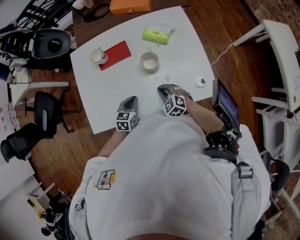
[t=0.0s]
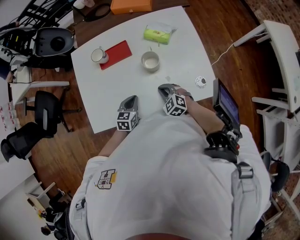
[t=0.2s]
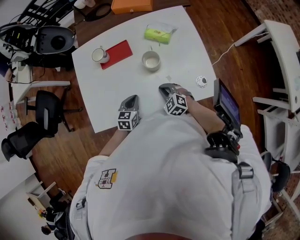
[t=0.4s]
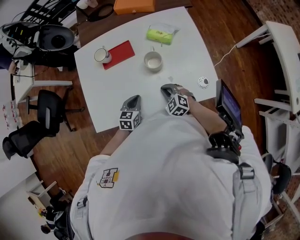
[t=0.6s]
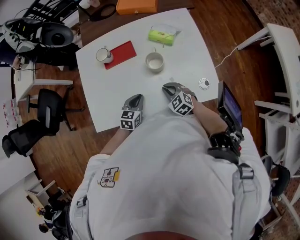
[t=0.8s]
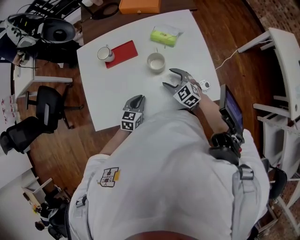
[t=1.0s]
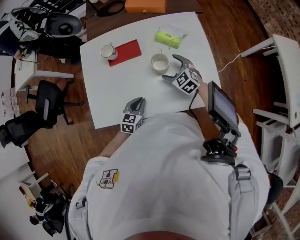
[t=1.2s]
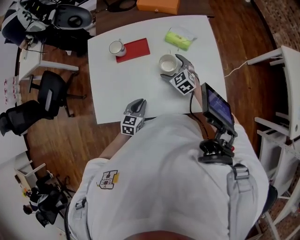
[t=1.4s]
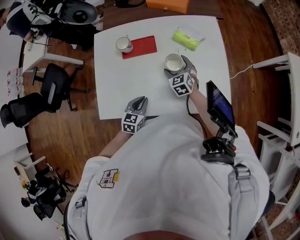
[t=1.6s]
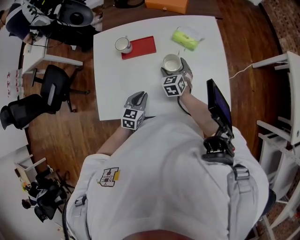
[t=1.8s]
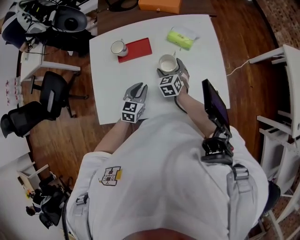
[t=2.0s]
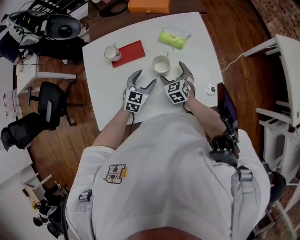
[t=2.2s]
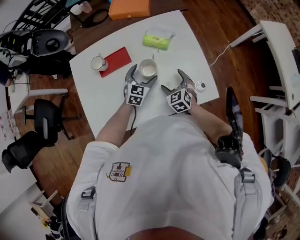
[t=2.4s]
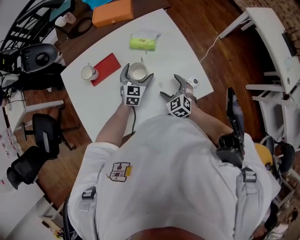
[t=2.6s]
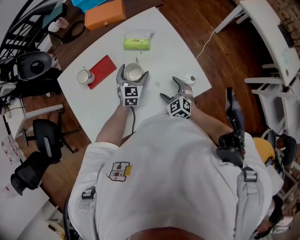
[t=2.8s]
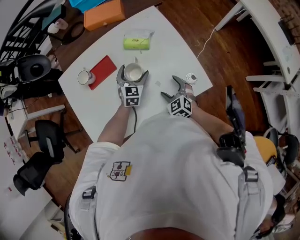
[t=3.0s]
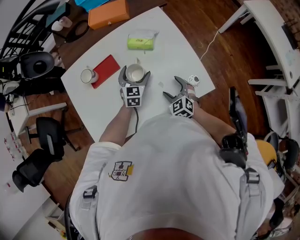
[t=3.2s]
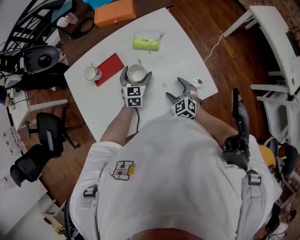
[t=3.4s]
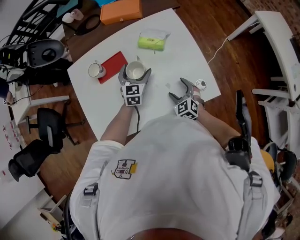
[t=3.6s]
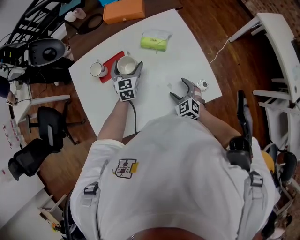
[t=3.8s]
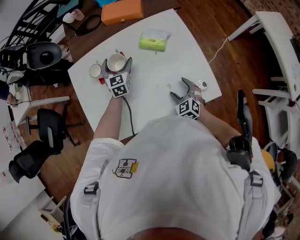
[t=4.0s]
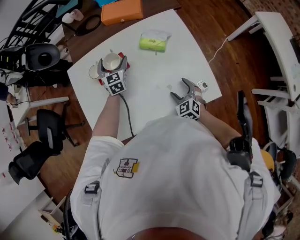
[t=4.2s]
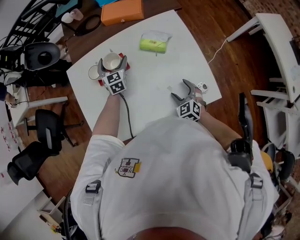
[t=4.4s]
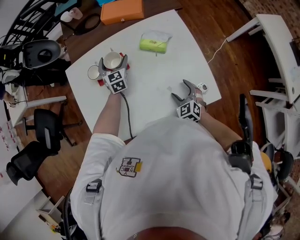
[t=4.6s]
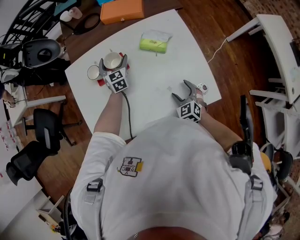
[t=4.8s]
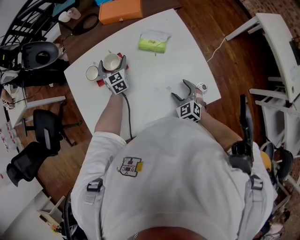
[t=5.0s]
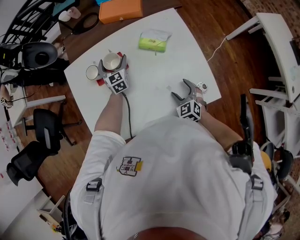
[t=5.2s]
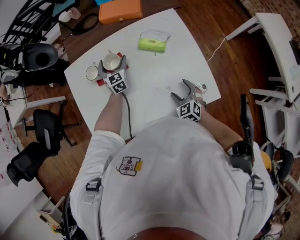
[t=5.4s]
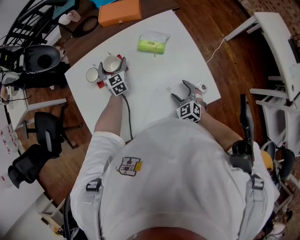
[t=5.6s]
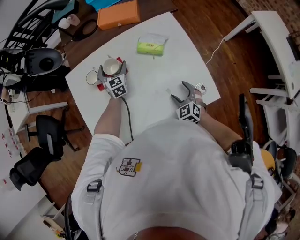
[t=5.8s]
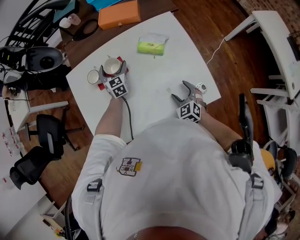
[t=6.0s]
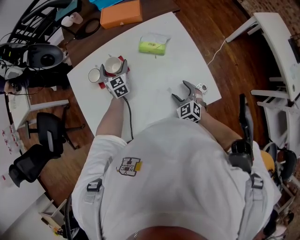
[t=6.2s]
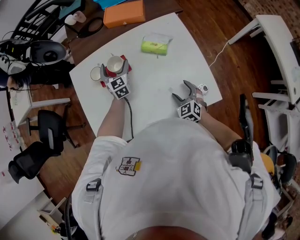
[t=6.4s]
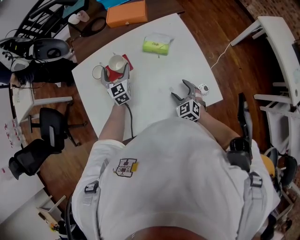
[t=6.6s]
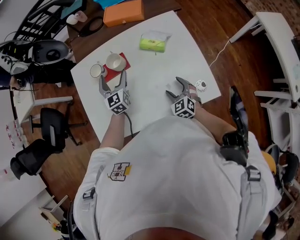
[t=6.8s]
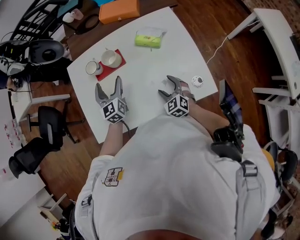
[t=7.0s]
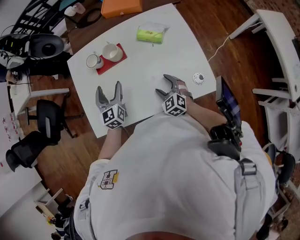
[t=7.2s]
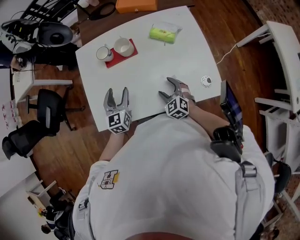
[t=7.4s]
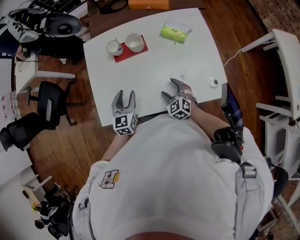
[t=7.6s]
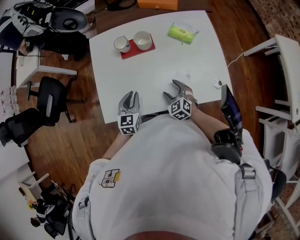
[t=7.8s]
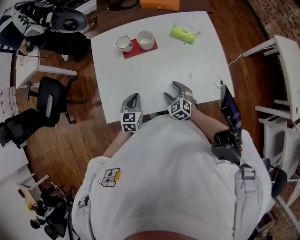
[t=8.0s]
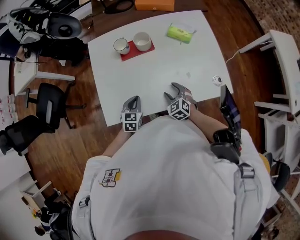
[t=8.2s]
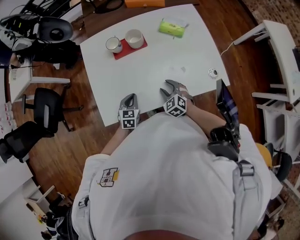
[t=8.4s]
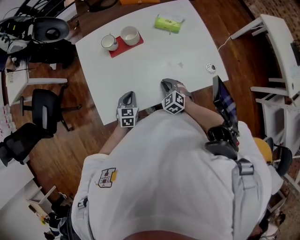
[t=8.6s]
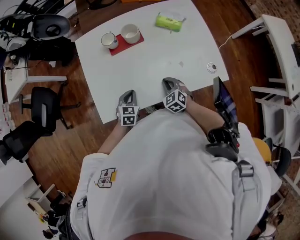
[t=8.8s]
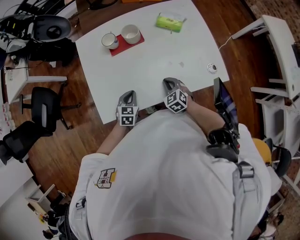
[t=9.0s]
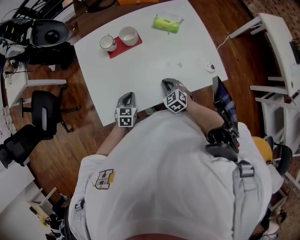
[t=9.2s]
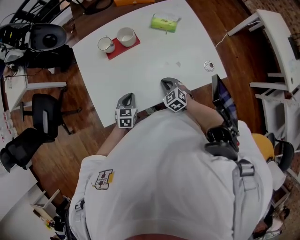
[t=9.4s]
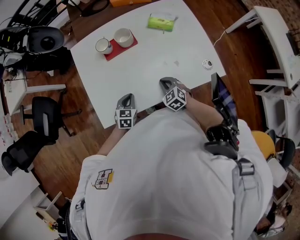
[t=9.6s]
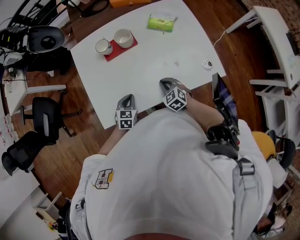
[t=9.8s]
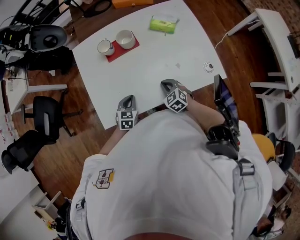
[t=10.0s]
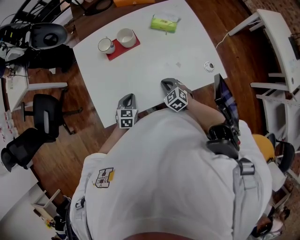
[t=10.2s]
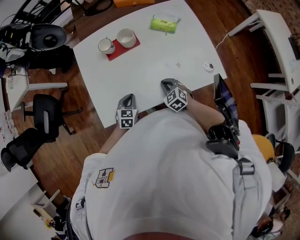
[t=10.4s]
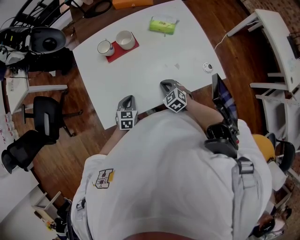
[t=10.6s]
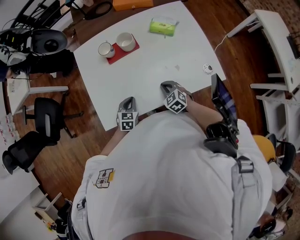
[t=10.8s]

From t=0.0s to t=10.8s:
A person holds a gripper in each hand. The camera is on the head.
From t=0.0s to t=1.6s: The right gripper is displaced forward by some 15 cm, and opens up.
From t=1.6s to t=3.0s: The left gripper travels forward and to the right by approximately 25 cm, changes its angle by roughly 30 degrees, and opens, while the right gripper heads to the right and backward, covering roughly 15 cm.
From t=3.0s to t=4.6s: The left gripper shifts some 20 cm to the left and forward, and rotates roughly 30 degrees.
From t=4.6s to t=6.2s: There are only small adjustments of the grippers.
From t=6.2s to t=7.8s: The right gripper heads to the left, covering some 15 cm. Meanwhile the left gripper travels backward by some 30 cm, and closes its fingers.
From t=7.8s to t=9.2s: The right gripper closes. Meanwhile the left gripper shifts some 10 cm downward, and rotates roughly 20 degrees.
From t=9.2s to t=10.8s: Both grippers stay about where they are.

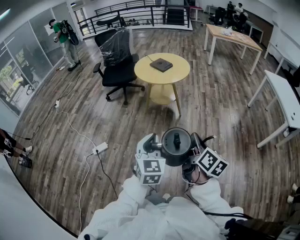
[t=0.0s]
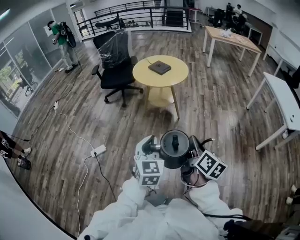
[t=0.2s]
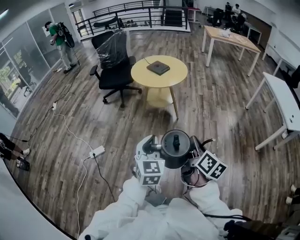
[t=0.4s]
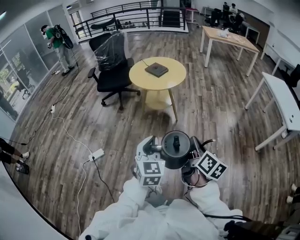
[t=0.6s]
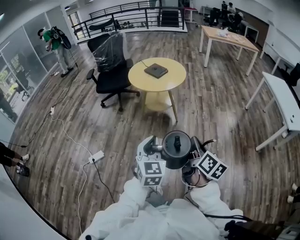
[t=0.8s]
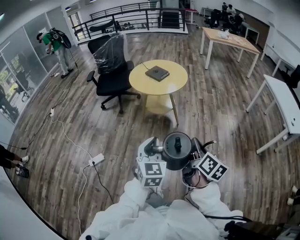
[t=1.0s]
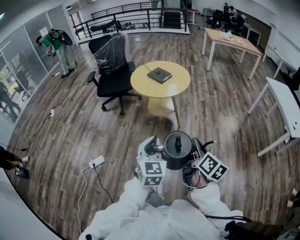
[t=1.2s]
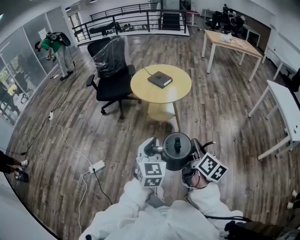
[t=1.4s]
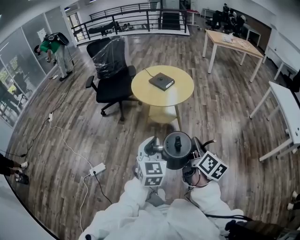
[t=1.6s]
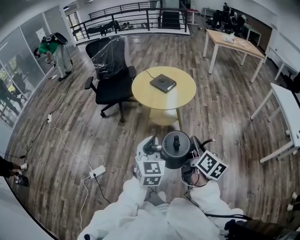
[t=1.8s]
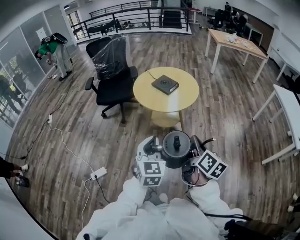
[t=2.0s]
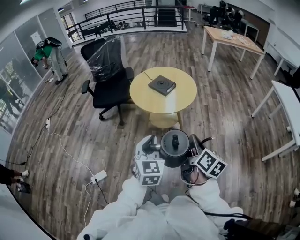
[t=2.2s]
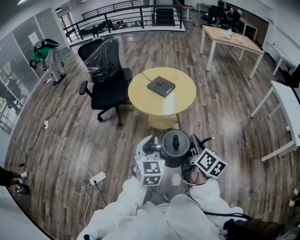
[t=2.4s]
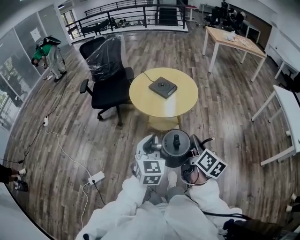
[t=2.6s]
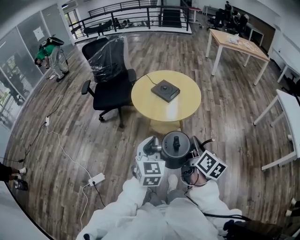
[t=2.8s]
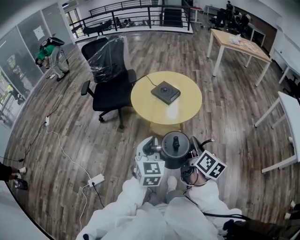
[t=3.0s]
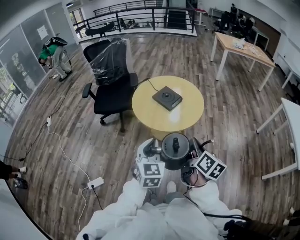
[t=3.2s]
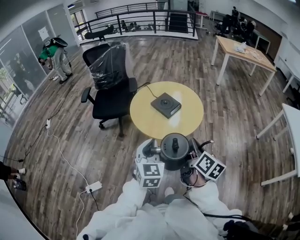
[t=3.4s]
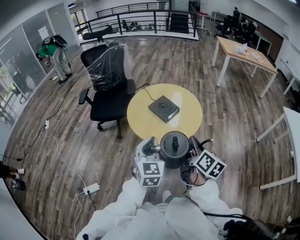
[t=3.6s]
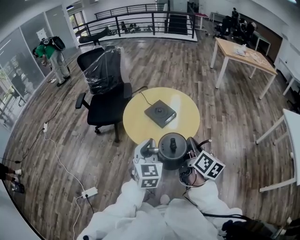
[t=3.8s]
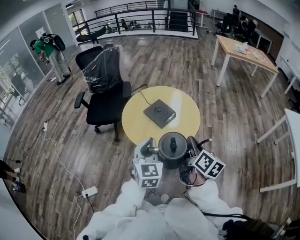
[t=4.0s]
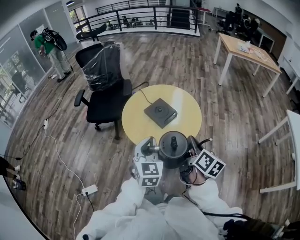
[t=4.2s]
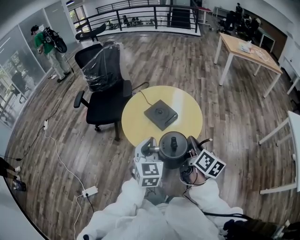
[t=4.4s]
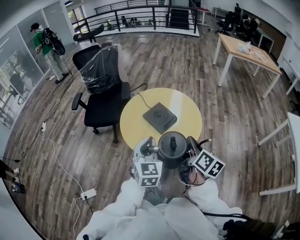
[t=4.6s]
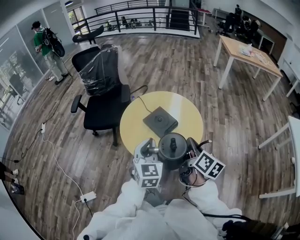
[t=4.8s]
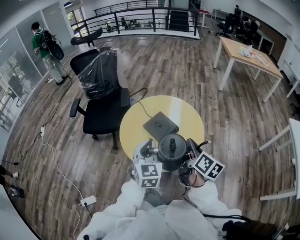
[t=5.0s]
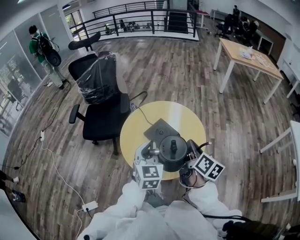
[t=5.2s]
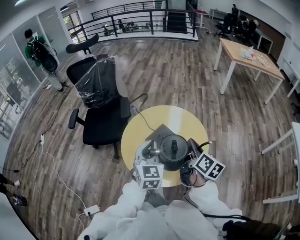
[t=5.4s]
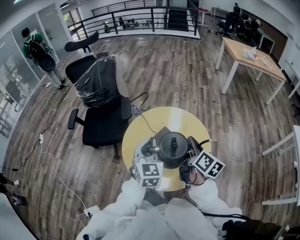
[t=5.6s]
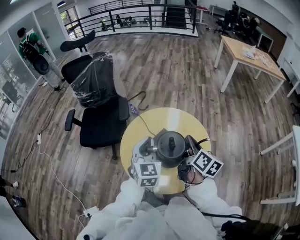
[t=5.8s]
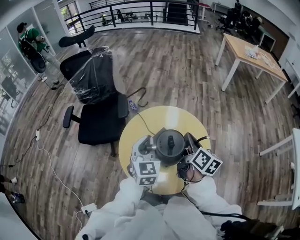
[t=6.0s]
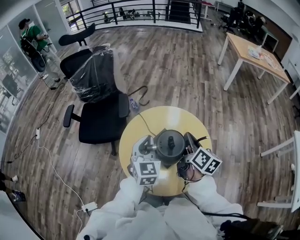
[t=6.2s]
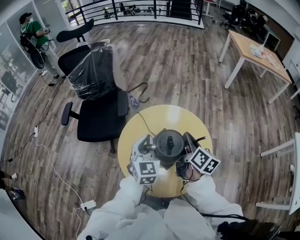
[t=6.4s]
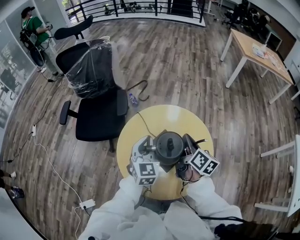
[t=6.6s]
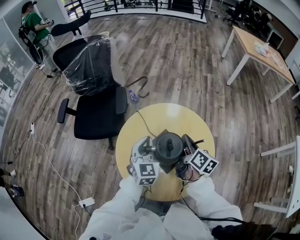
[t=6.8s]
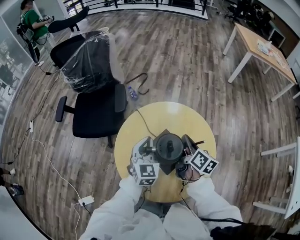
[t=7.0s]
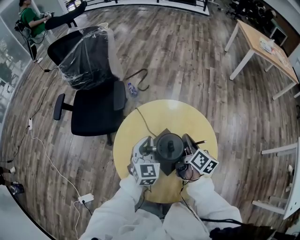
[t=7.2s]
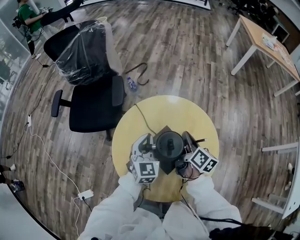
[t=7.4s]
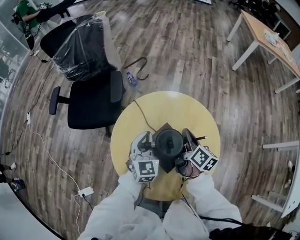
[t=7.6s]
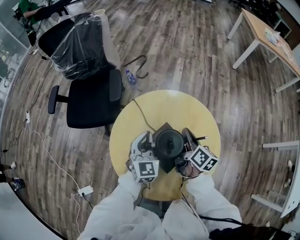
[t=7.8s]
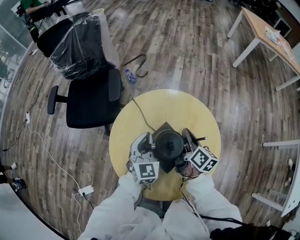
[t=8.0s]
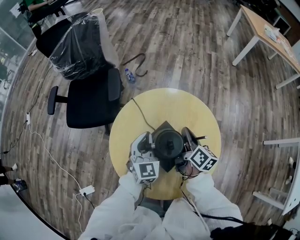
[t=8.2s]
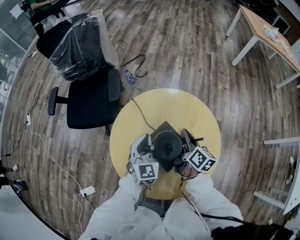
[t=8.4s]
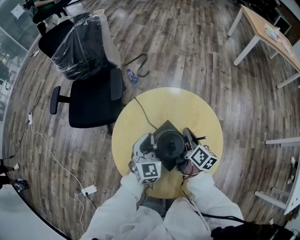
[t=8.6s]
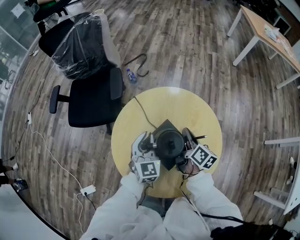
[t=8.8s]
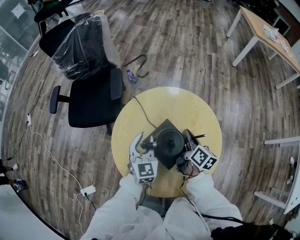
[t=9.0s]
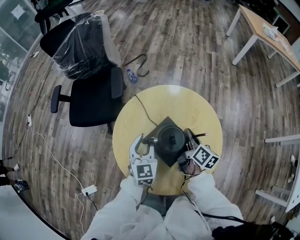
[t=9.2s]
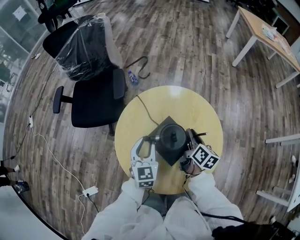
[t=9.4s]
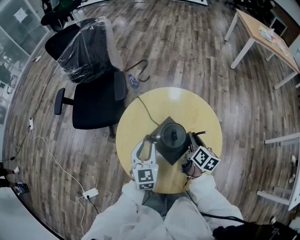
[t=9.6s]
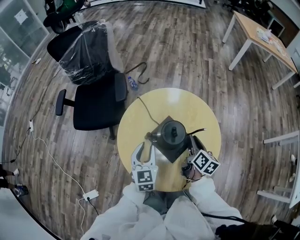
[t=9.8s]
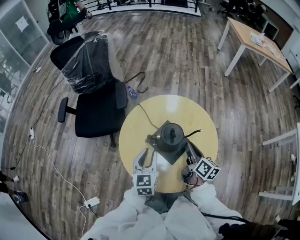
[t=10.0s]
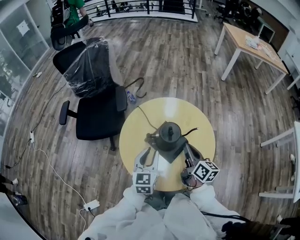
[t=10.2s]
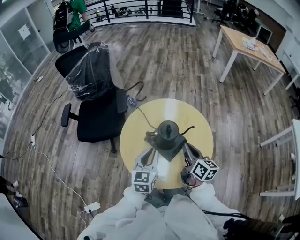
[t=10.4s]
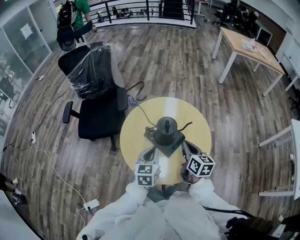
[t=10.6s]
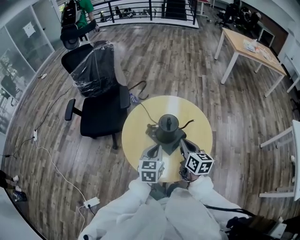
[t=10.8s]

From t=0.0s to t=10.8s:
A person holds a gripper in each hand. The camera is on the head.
From t=0.0s to t=1.6s: Both grippers move forward, roughly 25 cm.
From t=1.6s to t=3.0s: The two grippers go some 20 cm forward.
From t=3.0s to t=4.6s: The grippers both shift forward by roughly 25 cm.
From t=4.6s to t=6.2s: Both grippers travel together forward, some 30 cm.
From t=6.2s to t=7.8s: The grippers both shift downward and forward by about 20 cm.
From t=7.8s to t=9.2s: The left gripper opens up.
From t=9.2s to t=10.8s: The grippers both shift backward and upward by approximately 20 cm. The left gripper closes up. Meanwhile the right gripper changes its angle by approximately 30 degrees, and opens and closes again.

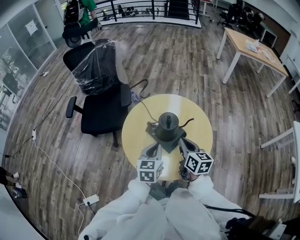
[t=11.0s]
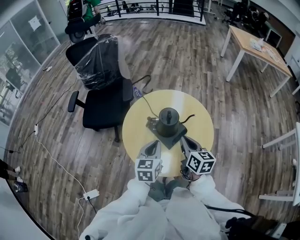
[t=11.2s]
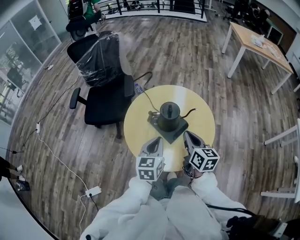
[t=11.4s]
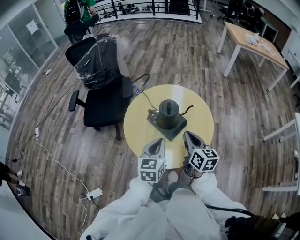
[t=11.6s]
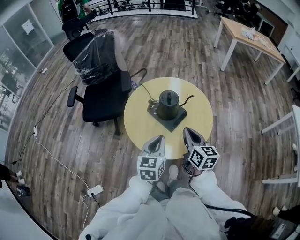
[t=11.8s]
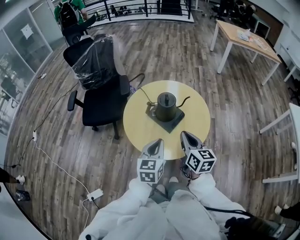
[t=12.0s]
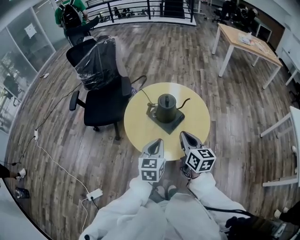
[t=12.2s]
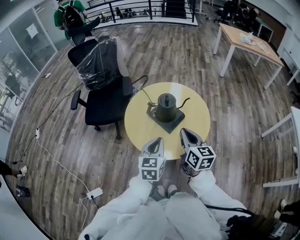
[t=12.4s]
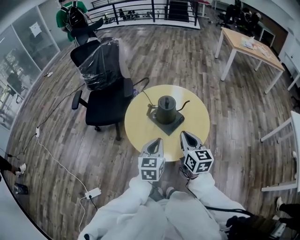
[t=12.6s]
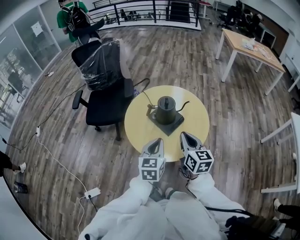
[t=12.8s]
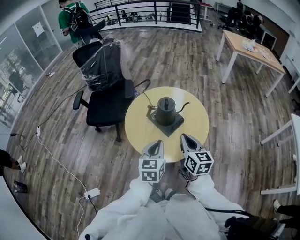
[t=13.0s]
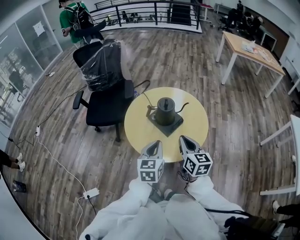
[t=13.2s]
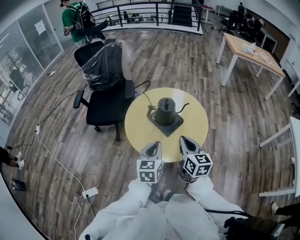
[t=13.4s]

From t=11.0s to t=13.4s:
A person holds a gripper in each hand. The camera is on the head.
From t=11.0s to t=12.2s: Both grippers travel together backward, approximately 10 cm.
From t=12.2s to t=13.4s: The grippers stay close to where they were, moving slightly.
